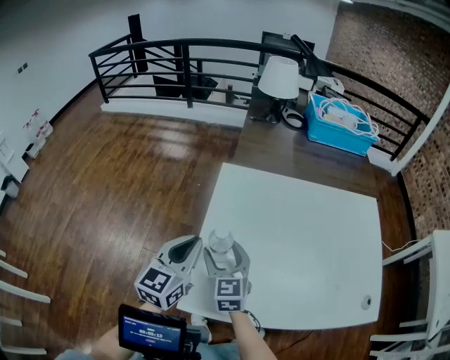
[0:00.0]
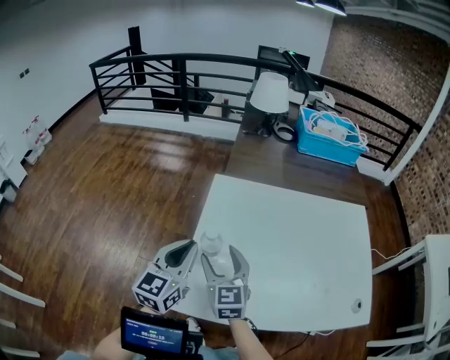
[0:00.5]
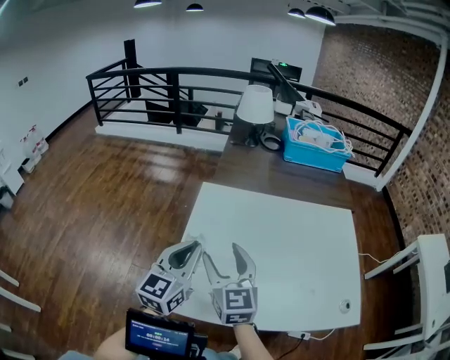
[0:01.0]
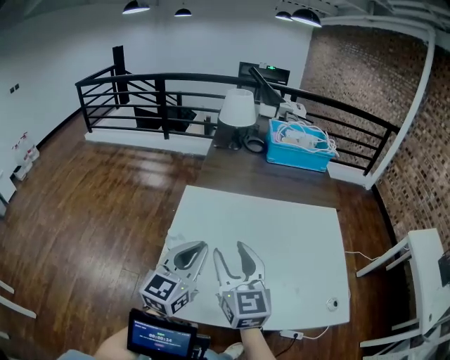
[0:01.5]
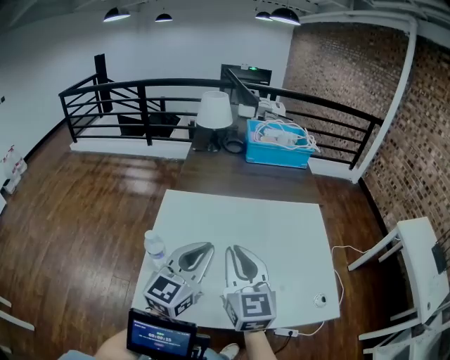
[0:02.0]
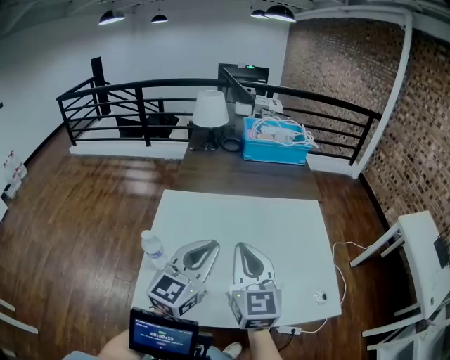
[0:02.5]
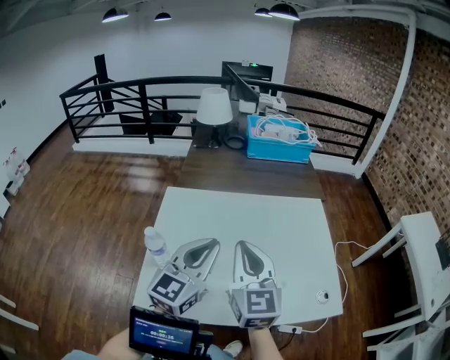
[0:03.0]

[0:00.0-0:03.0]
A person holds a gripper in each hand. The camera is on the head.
0:00.0 to 0:01.5: The left gripper travels to the right and upward by some 15 cm. Meanwhile the right gripper travels upward and to the right by approximately 25 cm.
0:01.5 to 0:03.0: Both grippers move to the right, about 10 cm. The right gripper closes.

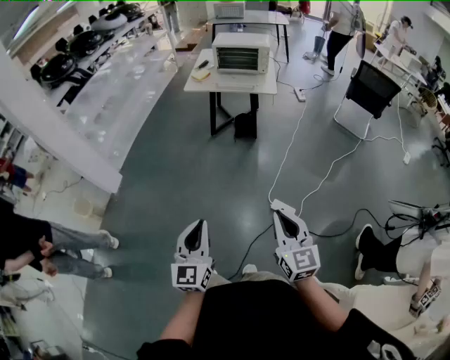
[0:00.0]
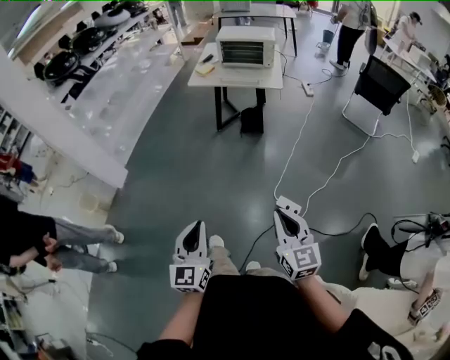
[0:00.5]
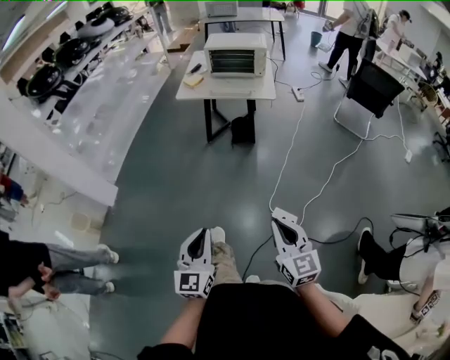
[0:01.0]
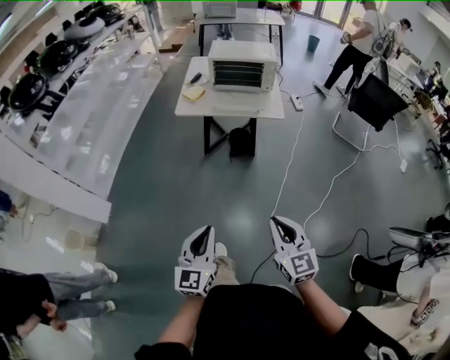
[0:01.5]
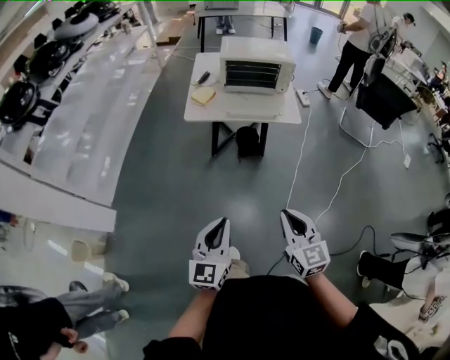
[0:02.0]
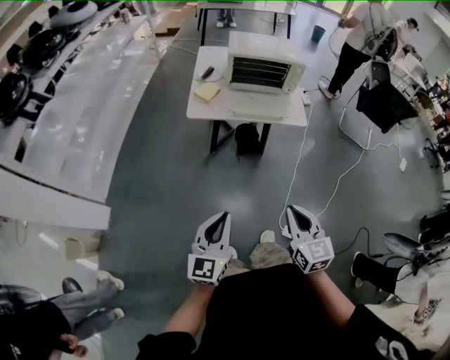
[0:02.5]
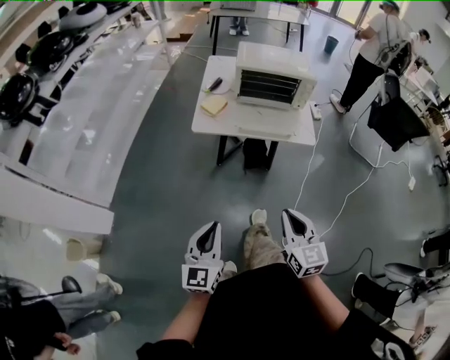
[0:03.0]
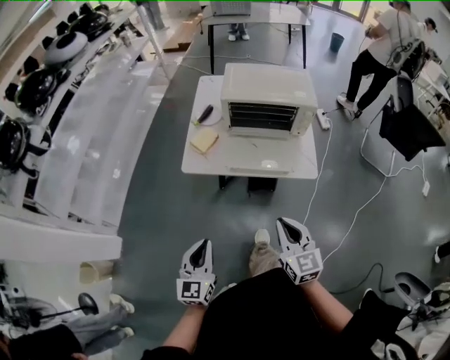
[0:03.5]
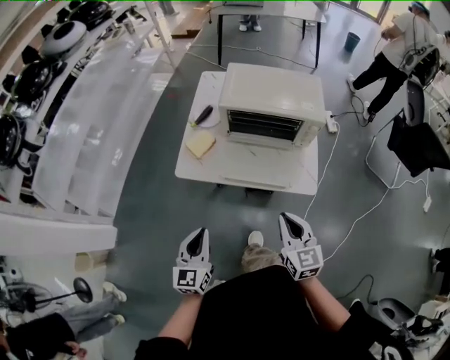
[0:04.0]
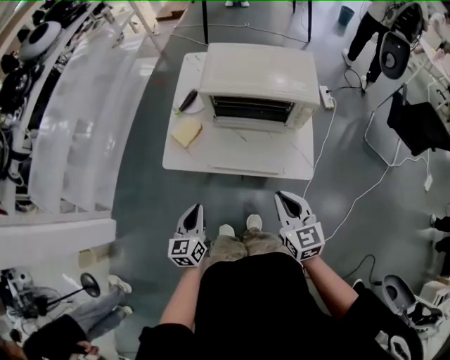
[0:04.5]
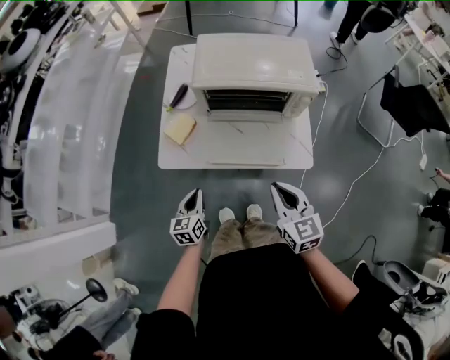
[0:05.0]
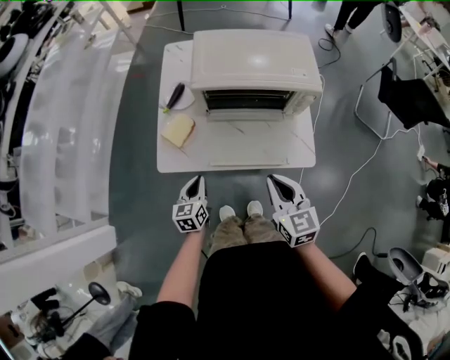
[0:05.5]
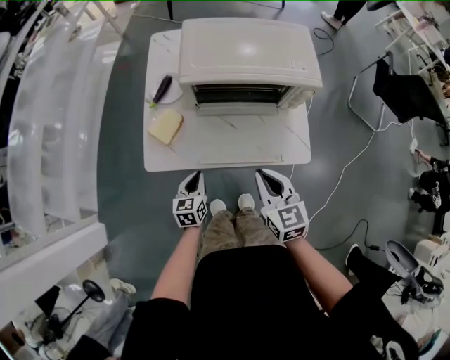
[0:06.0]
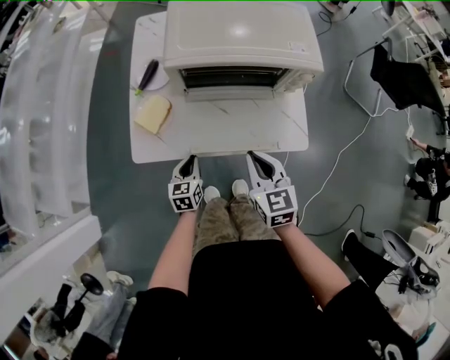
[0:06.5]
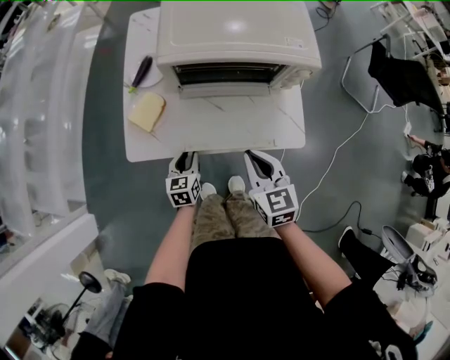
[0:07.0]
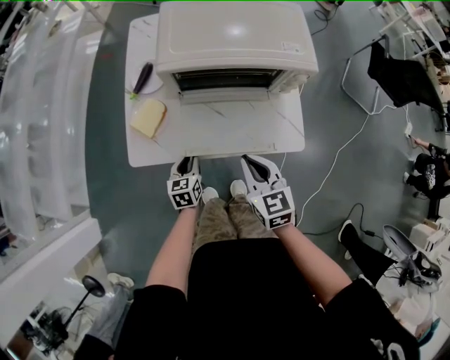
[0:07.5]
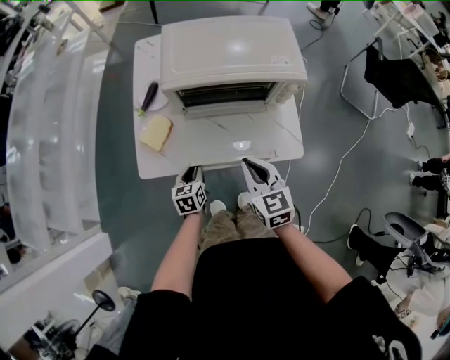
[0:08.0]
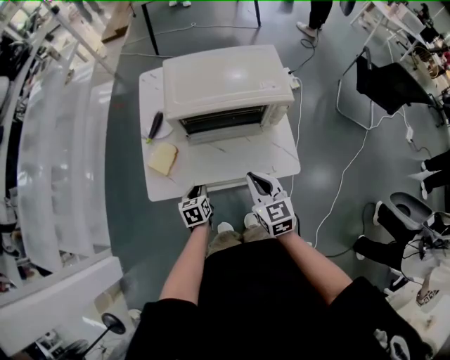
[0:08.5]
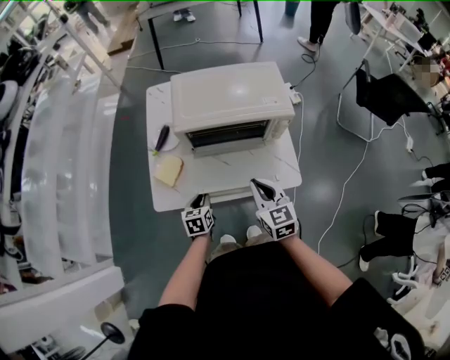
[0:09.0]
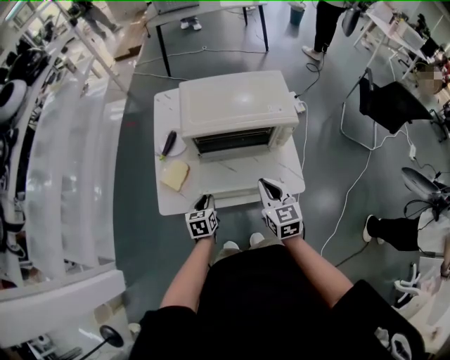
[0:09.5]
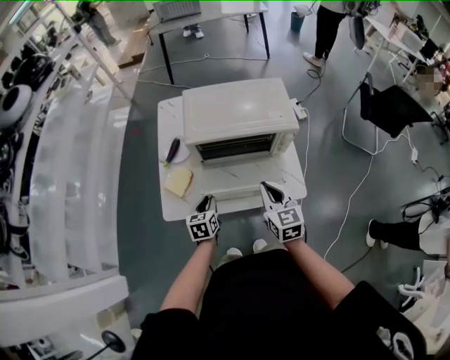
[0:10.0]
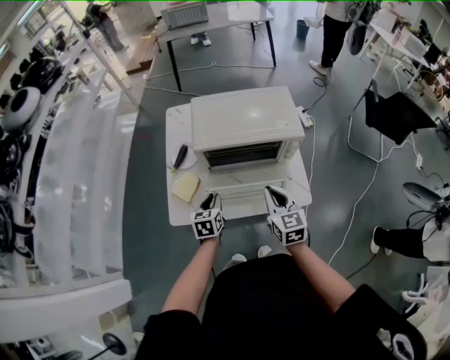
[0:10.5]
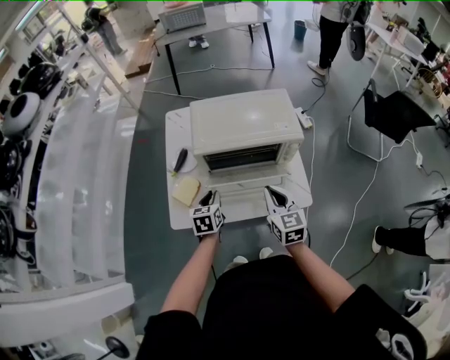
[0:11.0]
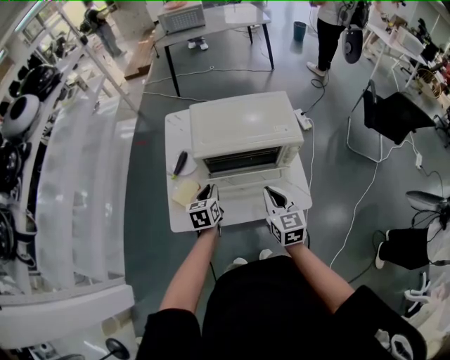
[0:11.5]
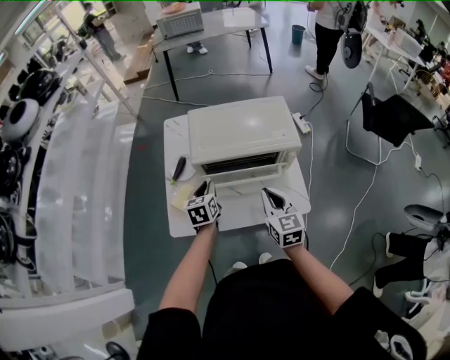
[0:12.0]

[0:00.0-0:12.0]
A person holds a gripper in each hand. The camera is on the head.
0:00.0 to 0:02.0: Both grippers are carried forward, approximately 50 cm.
0:02.0 to 0:04.0: The two grippers travel together, forward, about 50 cm.
0:04.0 to 0:06.0: The left gripper moves downward and forward, some 30 cm, and swivels roughly 30 degrees; the right gripper heads forward and downward, covering some 15 cm.
0:06.0 to 0:08.0: The left gripper moves some 5 cm.
0:08.0 to 0:10.0: The two grippers go approximately 10 cm upward.
0:10.0 to 0:12.0: The left gripper goes some 15 cm forward and upward.

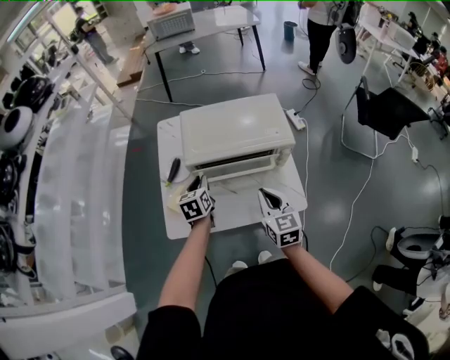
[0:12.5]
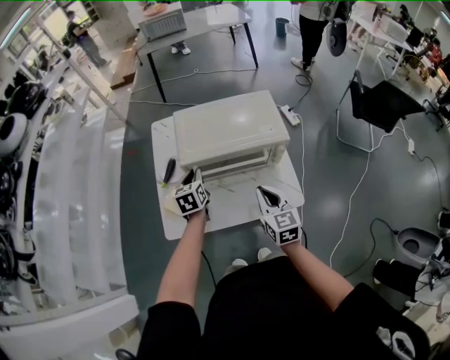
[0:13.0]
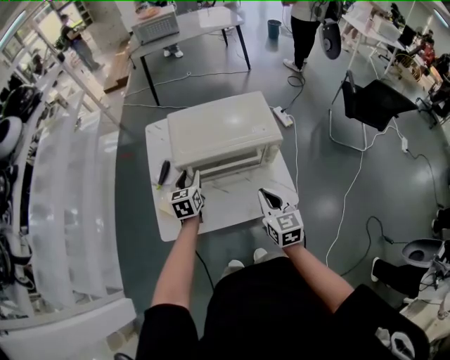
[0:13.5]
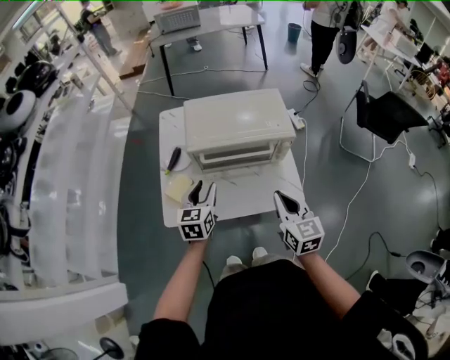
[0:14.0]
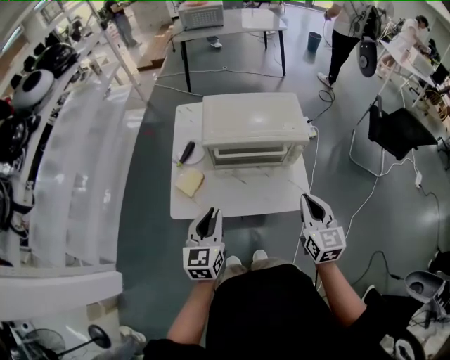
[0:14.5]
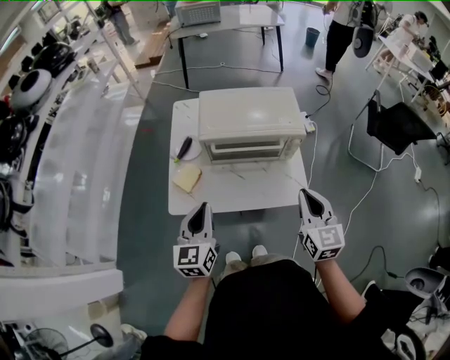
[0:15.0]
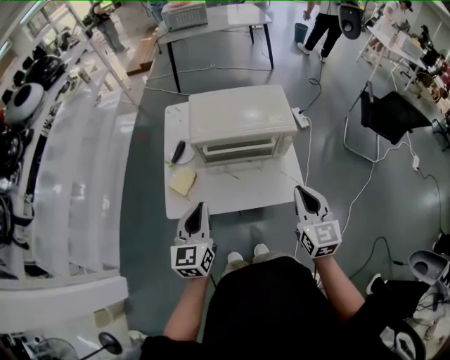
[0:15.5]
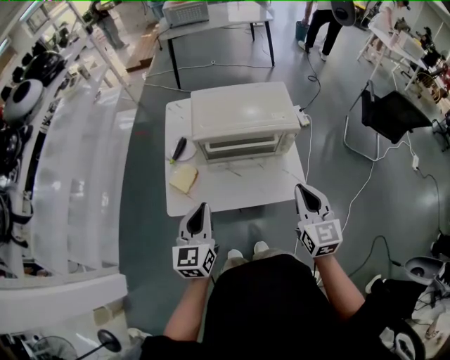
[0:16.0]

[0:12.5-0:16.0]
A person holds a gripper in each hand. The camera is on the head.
0:12.5 to 0:14.5: The left gripper goes approximately 25 cm backward and upward, and opens and closes again. The right gripper moves backward, upward and to the right, roughly 15 cm.
0:14.5 to 0:16.0: There are only small adjustments of the grippers.

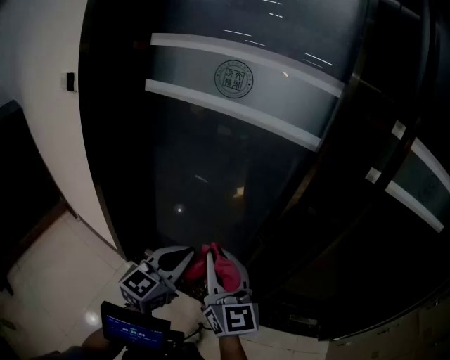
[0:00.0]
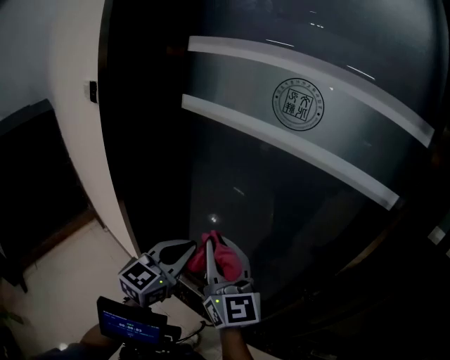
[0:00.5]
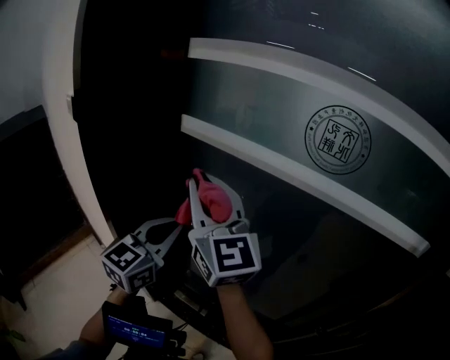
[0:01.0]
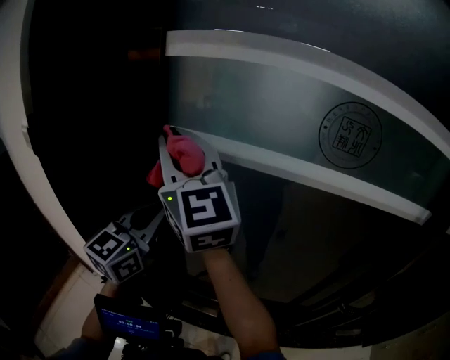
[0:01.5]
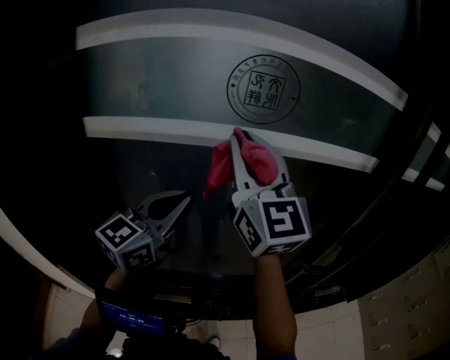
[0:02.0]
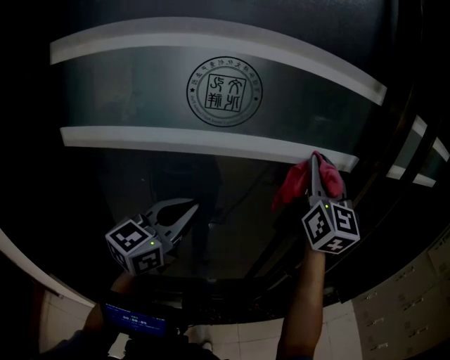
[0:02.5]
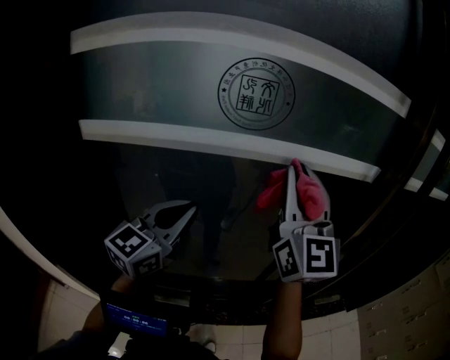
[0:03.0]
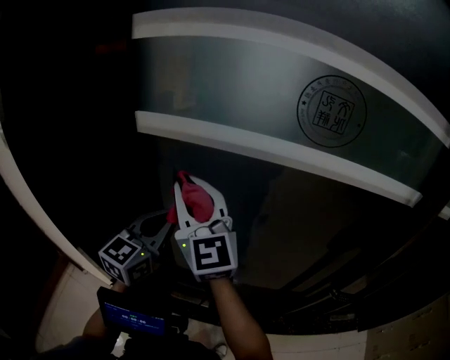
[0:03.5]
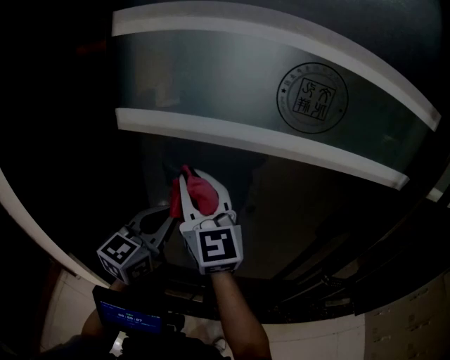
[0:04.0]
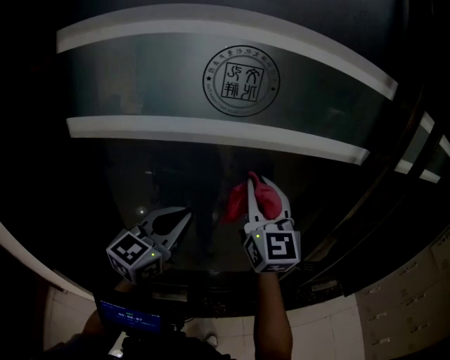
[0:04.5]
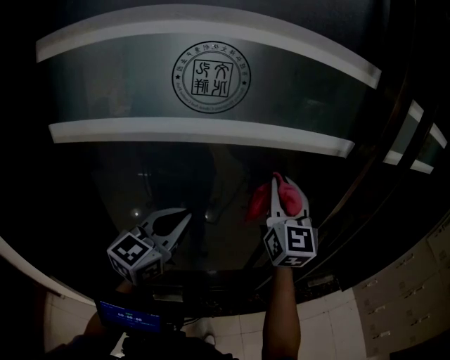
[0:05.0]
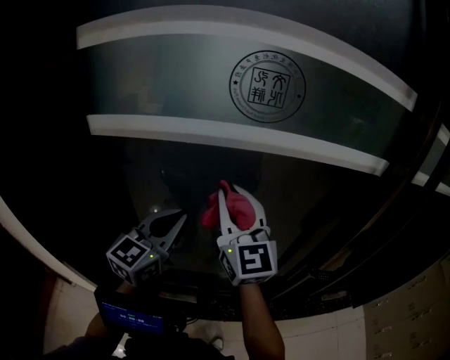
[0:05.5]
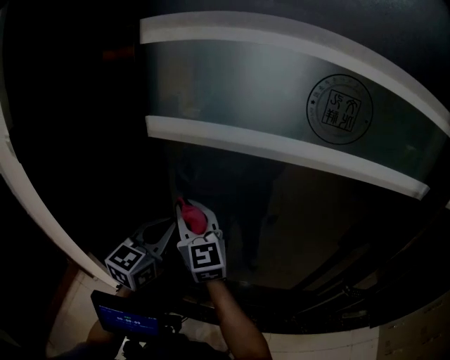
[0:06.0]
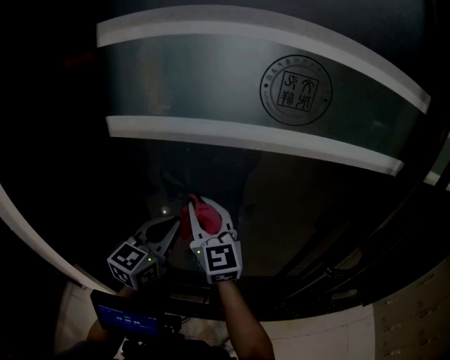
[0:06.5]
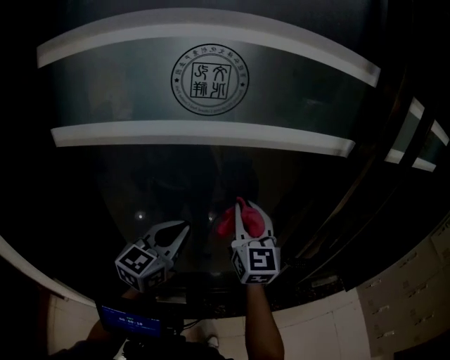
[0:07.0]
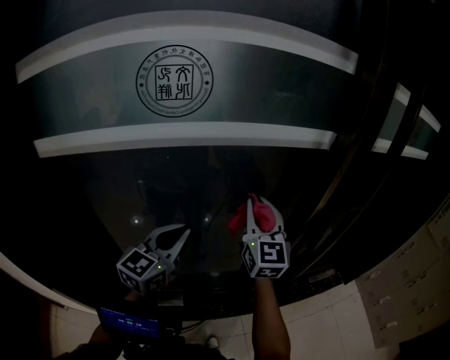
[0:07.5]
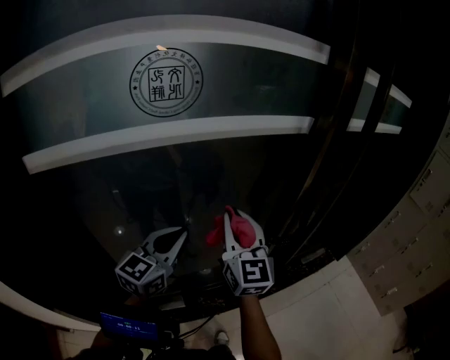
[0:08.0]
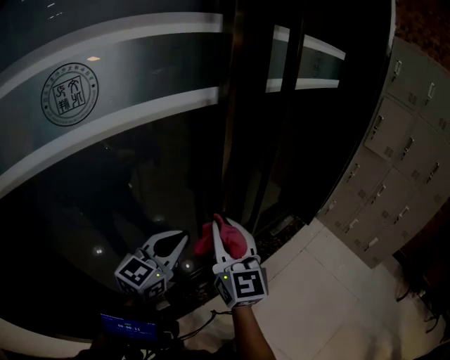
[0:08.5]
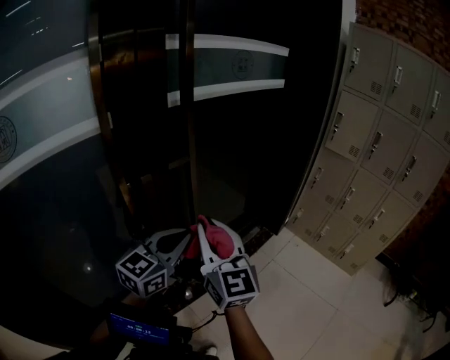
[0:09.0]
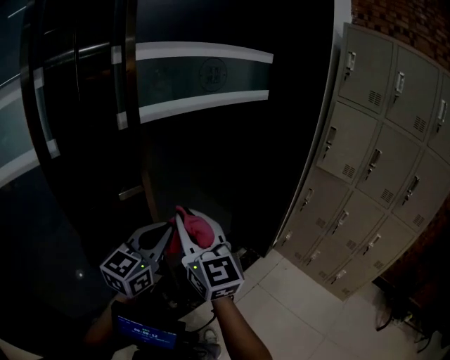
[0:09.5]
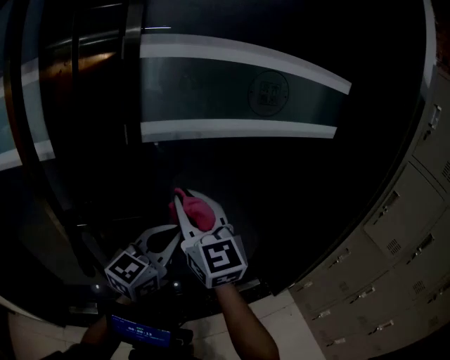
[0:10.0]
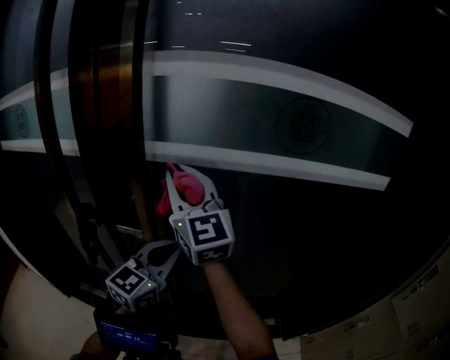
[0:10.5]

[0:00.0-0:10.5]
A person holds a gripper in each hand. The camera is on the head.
0:00.0 to 0:02.0: The right gripper changes place by roughly 40 cm, and rotates approximately 30 degrees. Meanwhile the left gripper moves approximately 40 cm, and rotates about 30 degrees.
0:02.0 to 0:04.0: The right gripper changes place by approximately 20 cm. Meanwhile the left gripper changes place by roughly 15 cm.
0:04.0 to 0:06.5: The right gripper shifts about 10 cm downward.
0:06.5 to 0:08.5: The left gripper moves roughly 40 cm, and turns by roughly 40 degrees, while the right gripper ends up approximately 40 cm from where it was, and swivels about 50 degrees.
0:08.5 to 0:10.5: The pair of grippers is taken about 50 cm. The right gripper turns by some 50 degrees, while the left gripper changes its angle by about 40 degrees.
